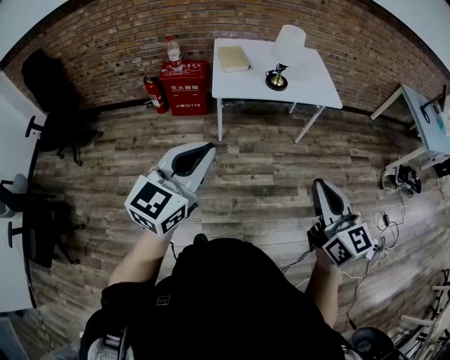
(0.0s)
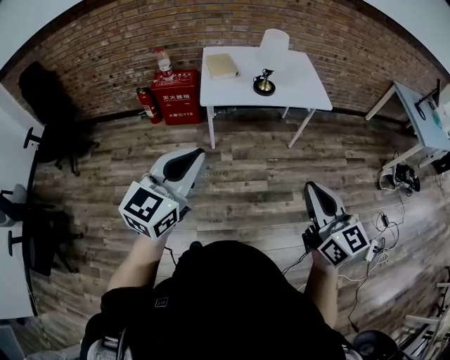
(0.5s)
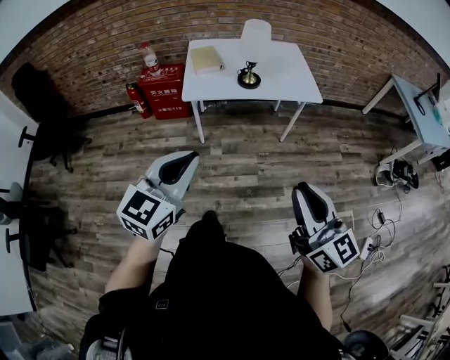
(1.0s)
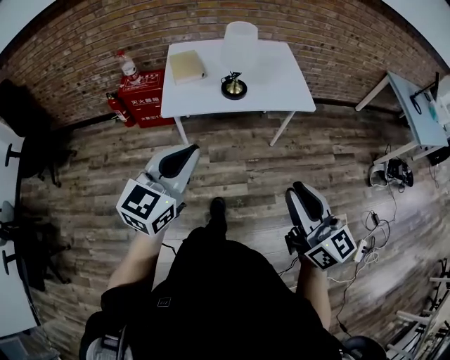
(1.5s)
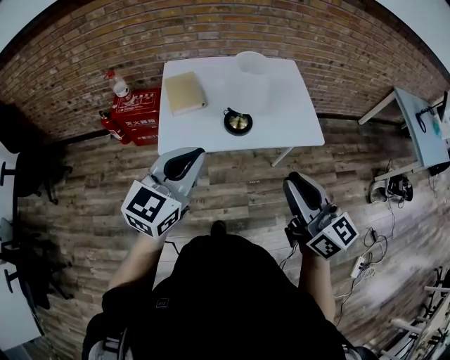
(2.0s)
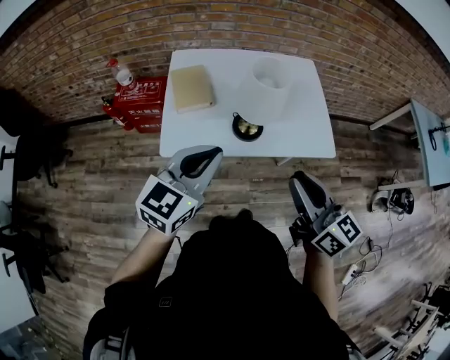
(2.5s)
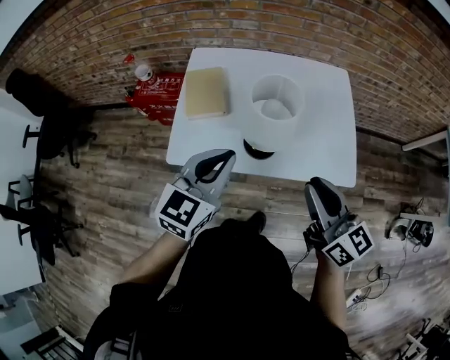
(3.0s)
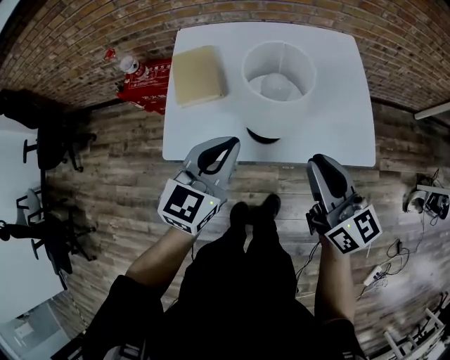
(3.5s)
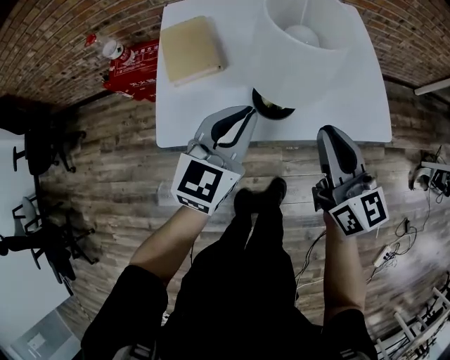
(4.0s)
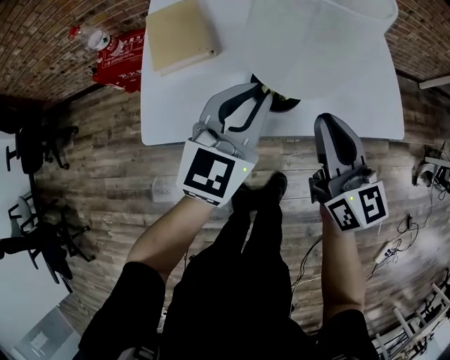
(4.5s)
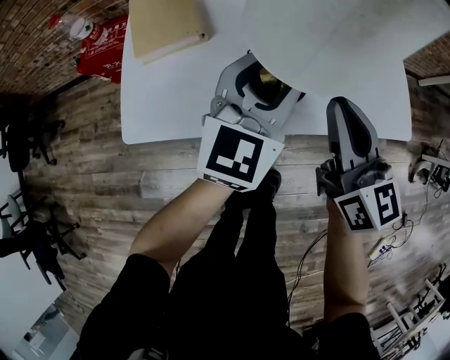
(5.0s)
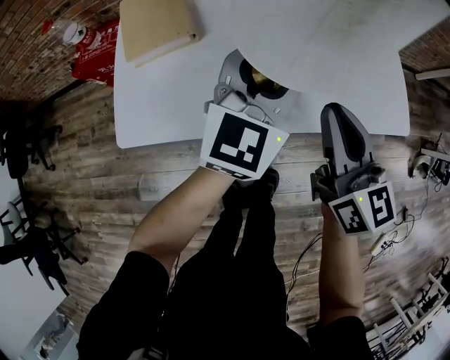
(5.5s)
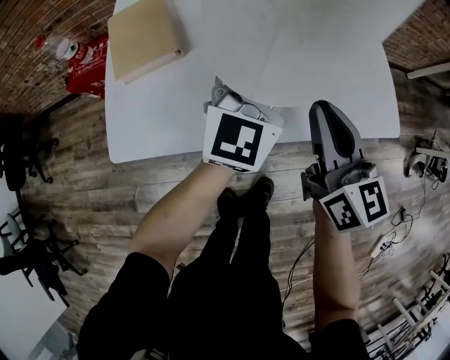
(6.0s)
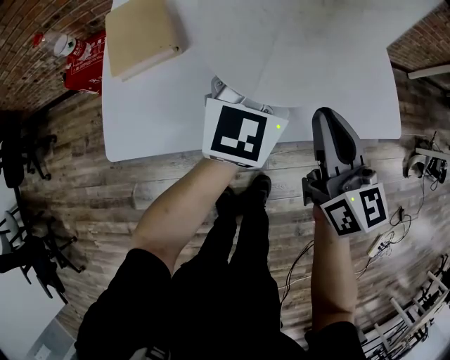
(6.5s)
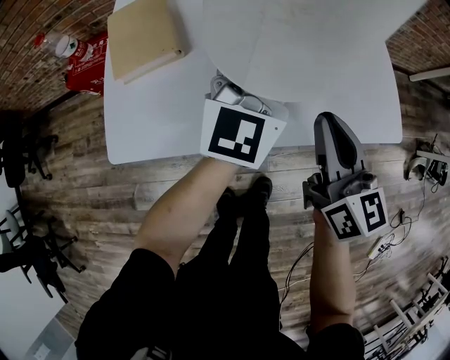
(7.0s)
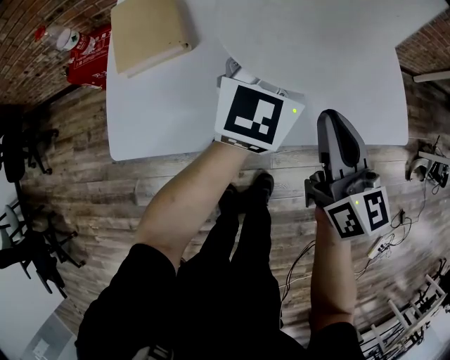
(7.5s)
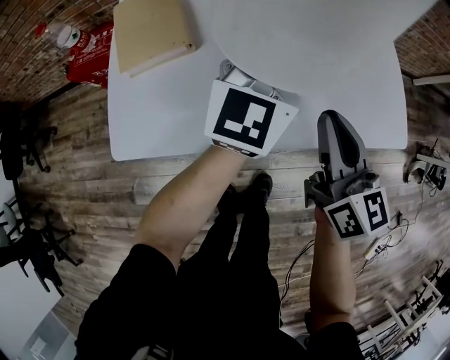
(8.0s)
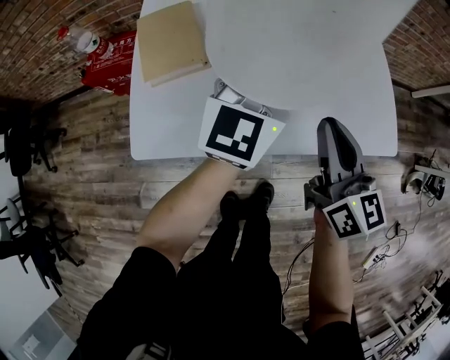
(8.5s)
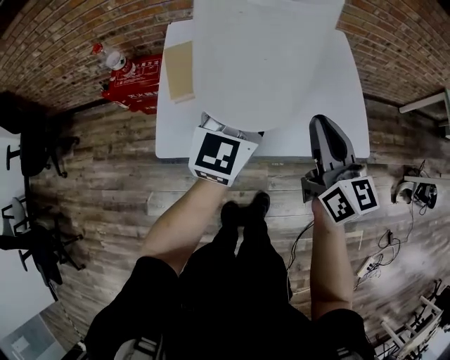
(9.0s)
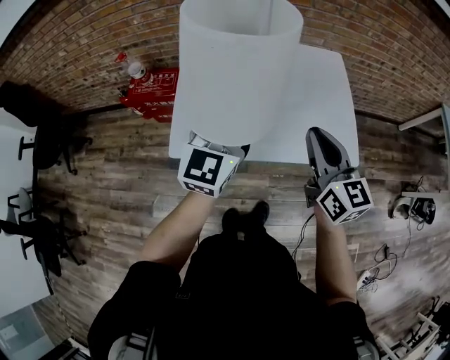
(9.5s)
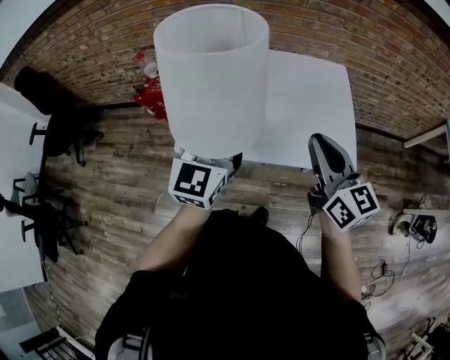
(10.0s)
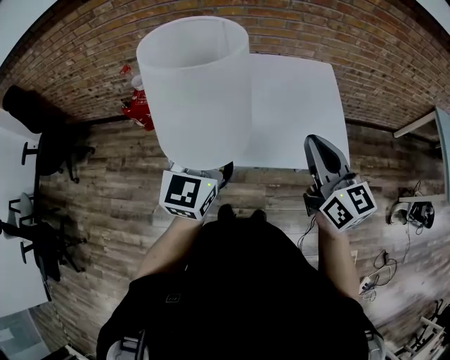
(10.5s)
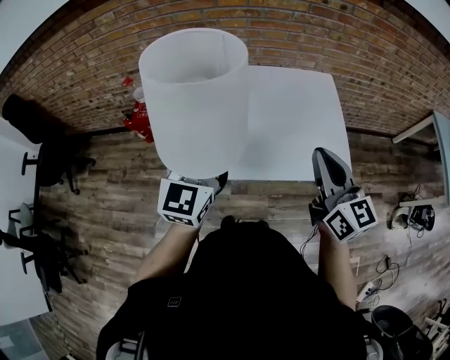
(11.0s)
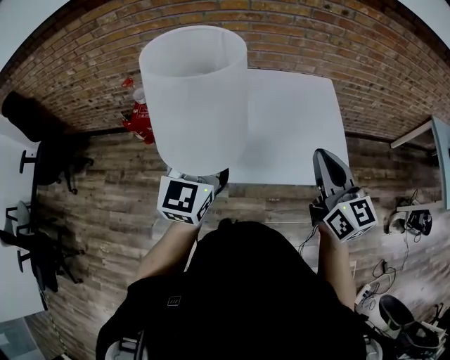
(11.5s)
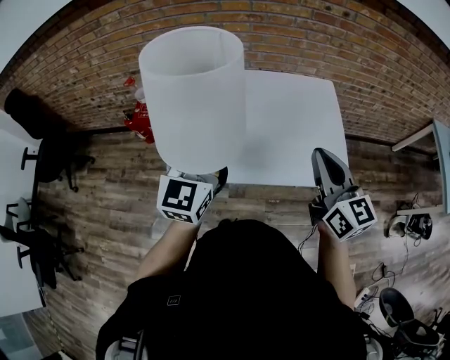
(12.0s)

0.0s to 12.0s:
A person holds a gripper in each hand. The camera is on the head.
0.0s to 2.0s: Both grippers move forward, about 35 cm.
2.0s to 4.0s: Both grippers travel together forward and downward, approximately 30 cm.
4.0s to 6.0s: The left gripper moves forward and to the right, approximately 15 cm, and opens up; the right gripper heads downward and forward, covering approximately 10 cm.
6.0s to 8.0s: The left gripper closes up.
8.0s to 10.0s: The left gripper shifts roughly 30 cm upward, backward and to the left; the right gripper moves upward, about 25 cm.
10.0s to 12.0s: The left gripper ends up roughly 5 cm from where it was.

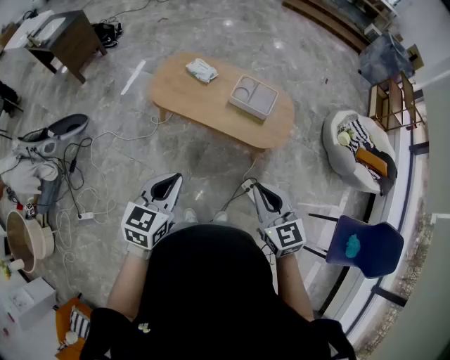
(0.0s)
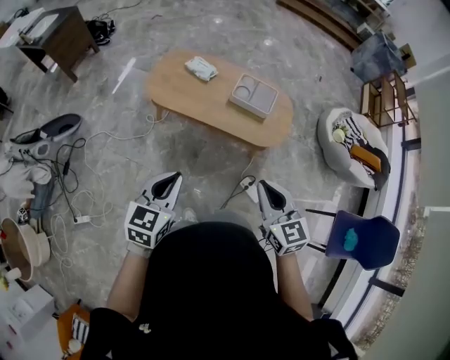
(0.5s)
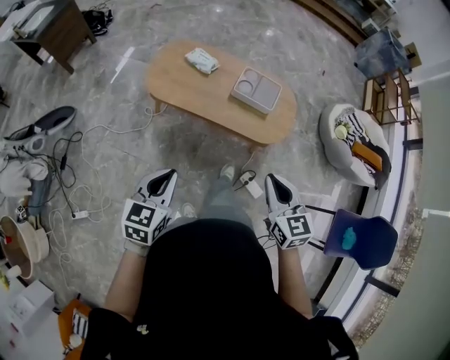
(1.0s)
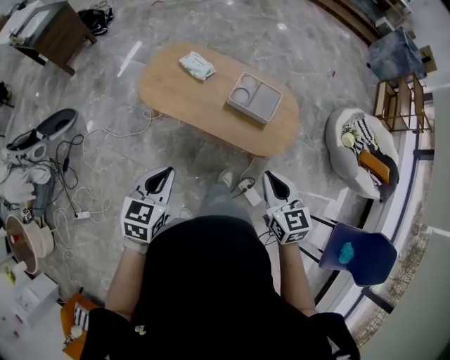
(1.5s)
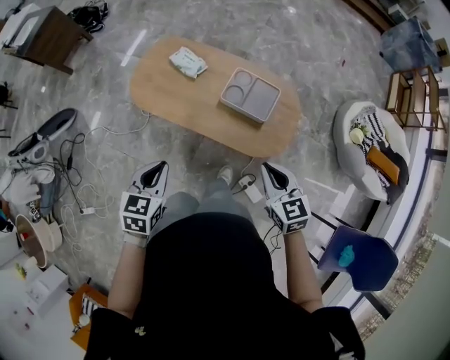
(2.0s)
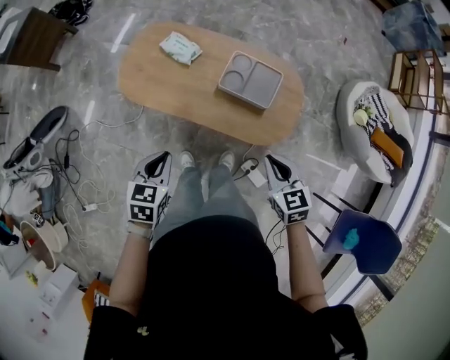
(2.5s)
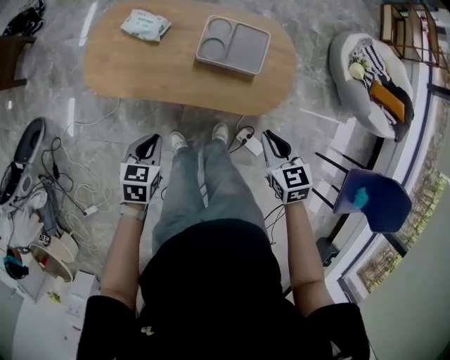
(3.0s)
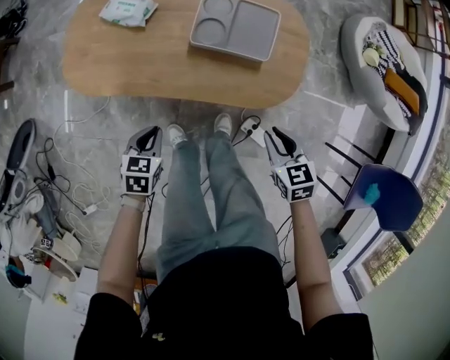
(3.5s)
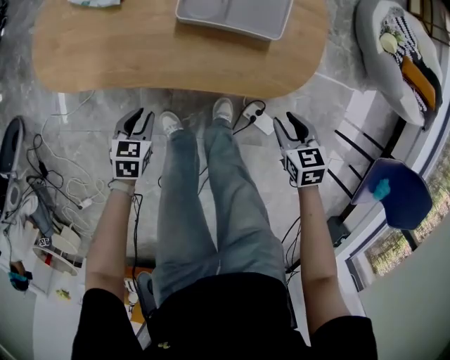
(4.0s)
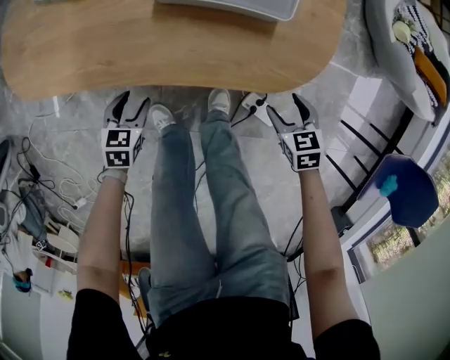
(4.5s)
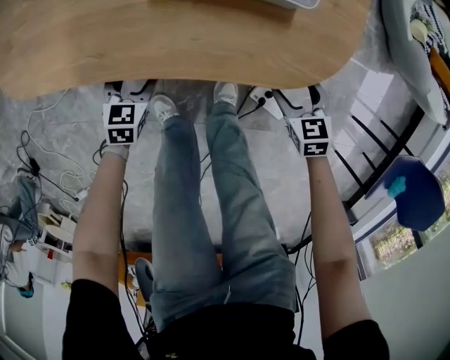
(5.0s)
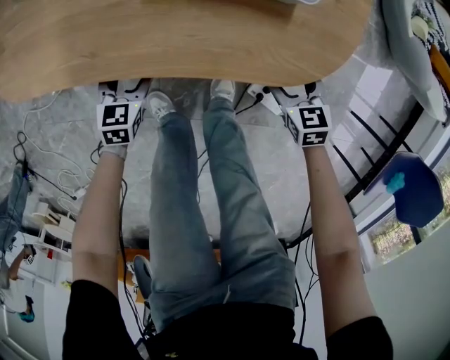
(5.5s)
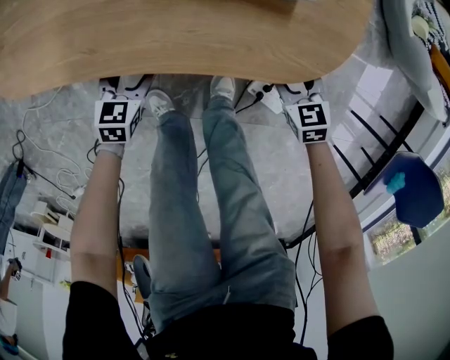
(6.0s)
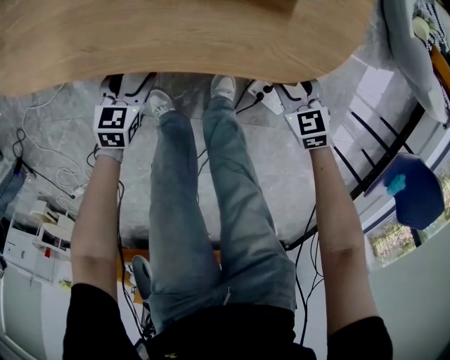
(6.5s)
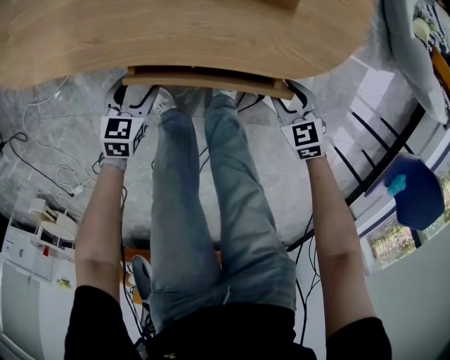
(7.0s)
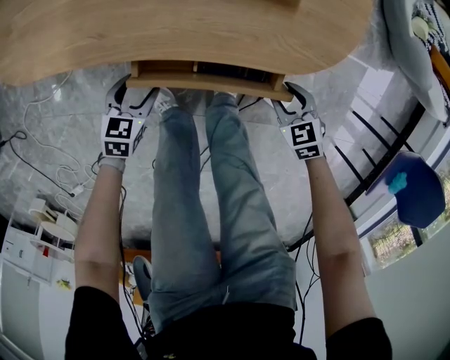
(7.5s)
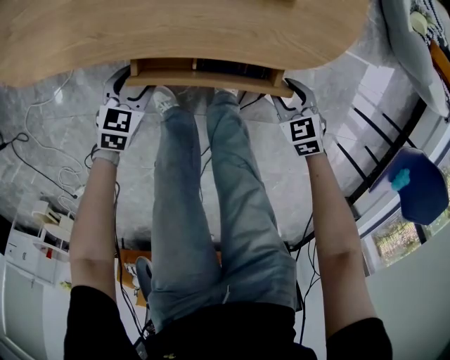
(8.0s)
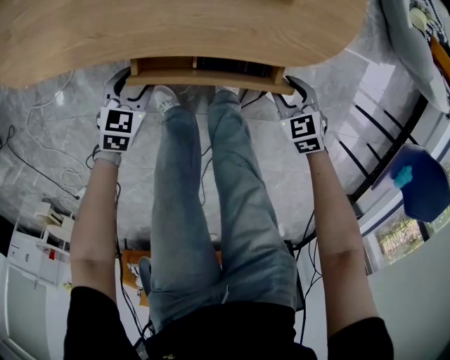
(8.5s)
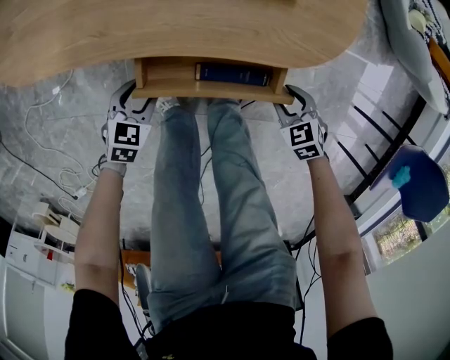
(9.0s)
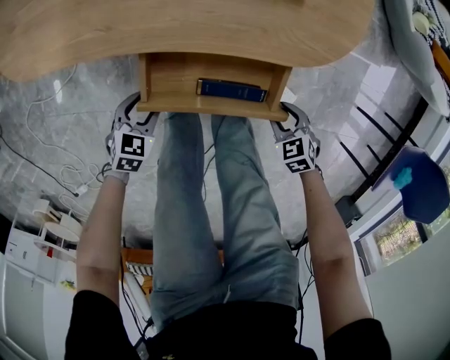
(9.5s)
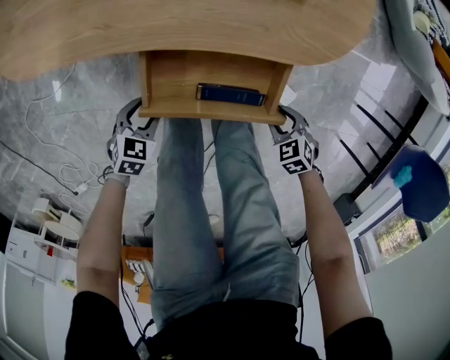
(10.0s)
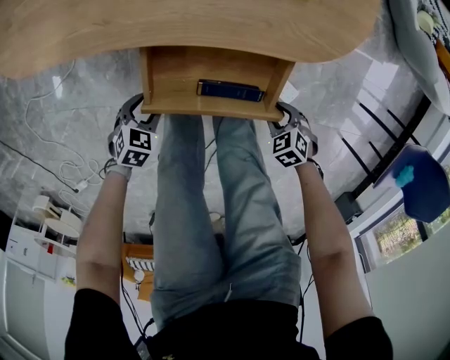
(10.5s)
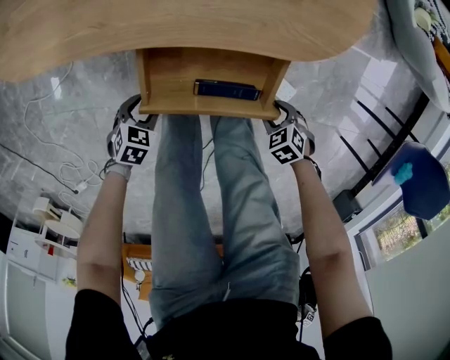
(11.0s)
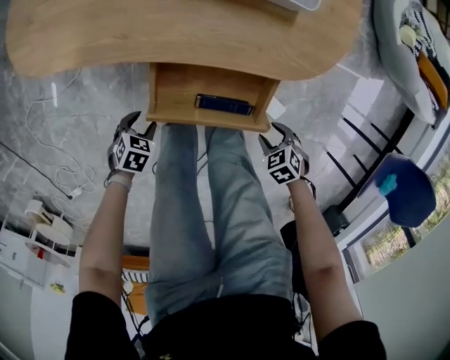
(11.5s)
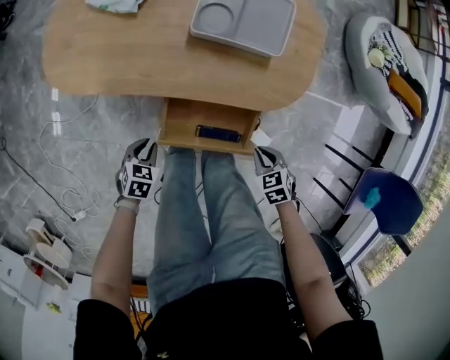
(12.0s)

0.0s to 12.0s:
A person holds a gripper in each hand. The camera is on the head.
0.0s to 2.0s: The two grippers go approximately 30 cm forward and downward.
2.0s to 4.0s: The grippers both shift downward by roughly 50 cm. The right gripper rotates some 30 degrees, and opens its fingers, while the left gripper changes its angle by approximately 30 degrees.
4.0s to 6.0s: The two grippers go roughly 15 cm downward. The left gripper opens up. Meanwhile the right gripper opens and closes again.
6.0s to 8.0s: Both grippers travel together backward, approximately 10 cm.
8.0s to 10.0s: The two grippers go roughly 10 cm backward.
10.0s to 12.0s: Both grippers travel together upward, about 15 cm. The left gripper closes.

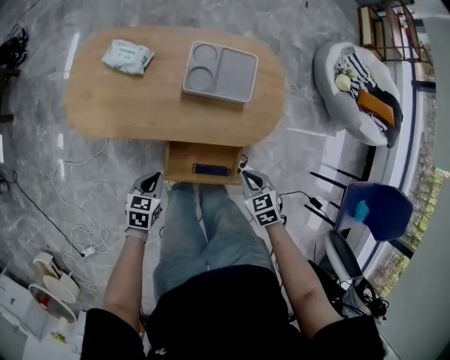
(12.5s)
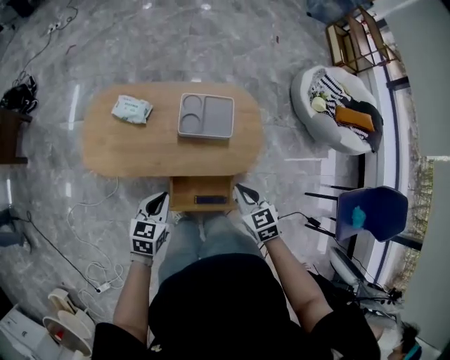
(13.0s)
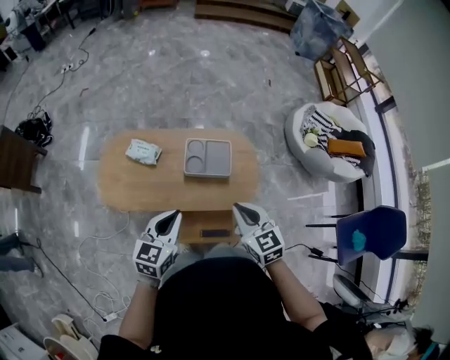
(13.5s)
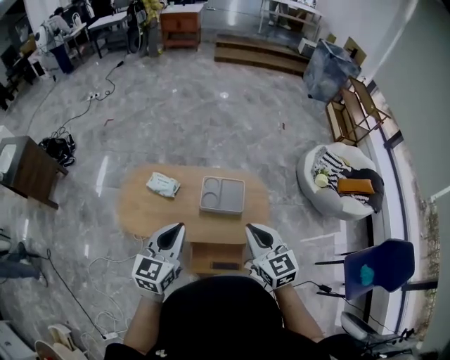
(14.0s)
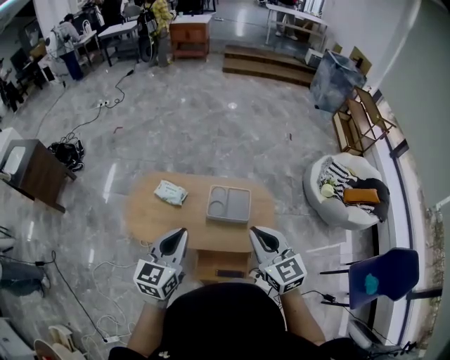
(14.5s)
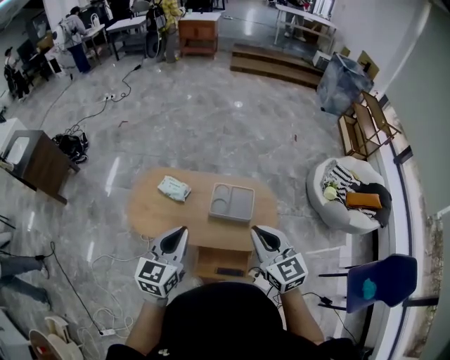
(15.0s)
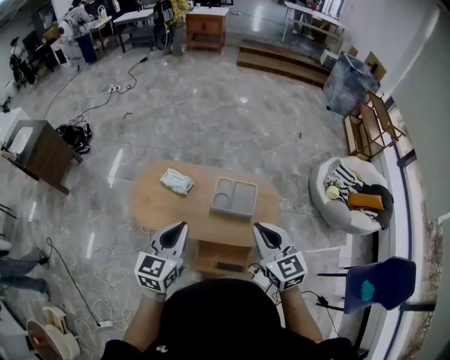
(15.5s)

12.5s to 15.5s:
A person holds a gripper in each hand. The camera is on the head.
12.5s to 14.0s: The two grippers go about 50 cm upward. The left gripper tips its fingers upward by about 40 degrees. The right gripper tilts its fingers roughly 40 degrees upward.
14.0s to 15.5s: The grippers stay close to where they were, moving slightly.
